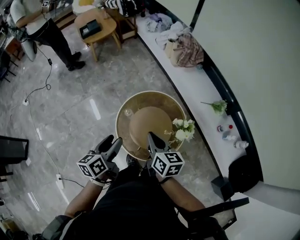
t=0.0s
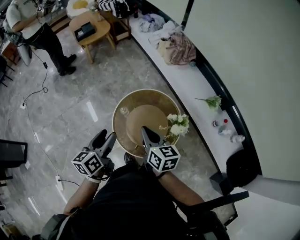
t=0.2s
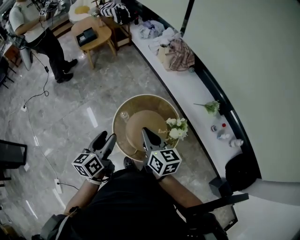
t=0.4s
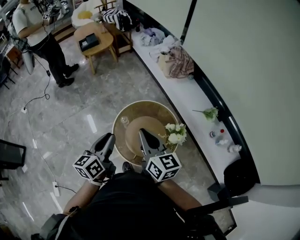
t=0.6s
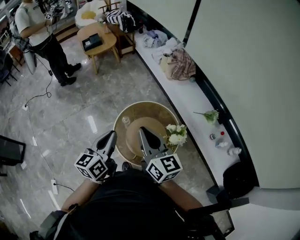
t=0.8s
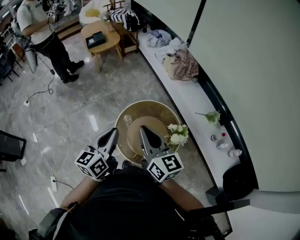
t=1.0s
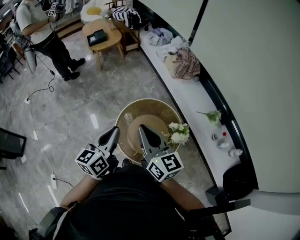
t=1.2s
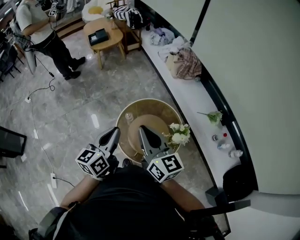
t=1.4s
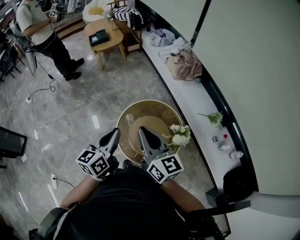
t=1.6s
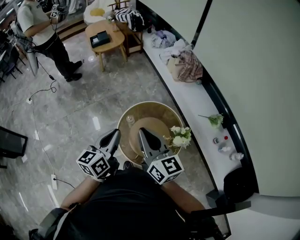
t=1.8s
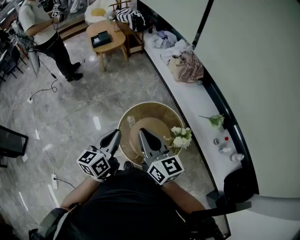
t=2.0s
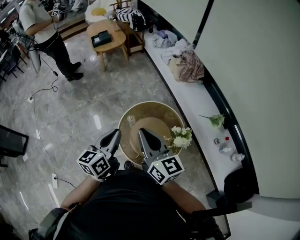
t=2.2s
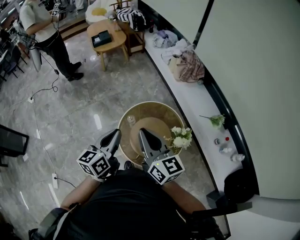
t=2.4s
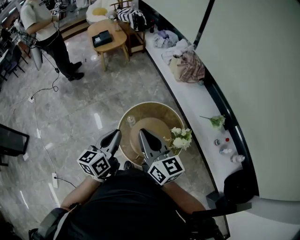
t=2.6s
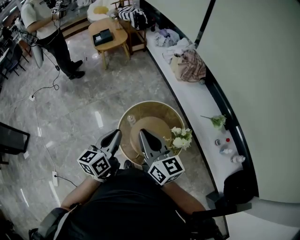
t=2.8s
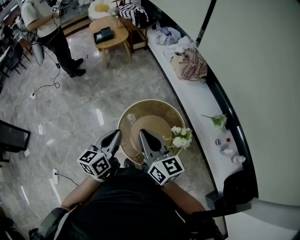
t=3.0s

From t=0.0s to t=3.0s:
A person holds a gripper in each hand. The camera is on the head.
From t=0.0s to t=1.6s: The left gripper heads upward, covering roughly 10 cm, rotates about 20 degrees, and closes up. Meanwhile the right gripper is displaced upward by roughly 15 cm, and turns by roughly 30 degrees.
From t=1.6s to t=3.0s: There are only small adjustments of the grippers.

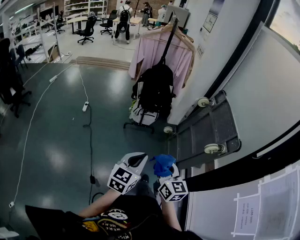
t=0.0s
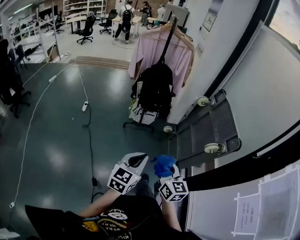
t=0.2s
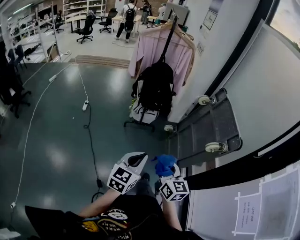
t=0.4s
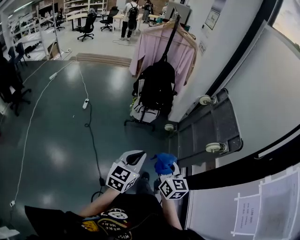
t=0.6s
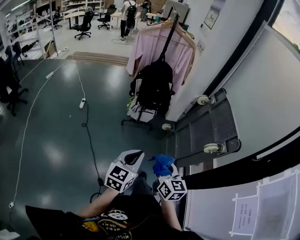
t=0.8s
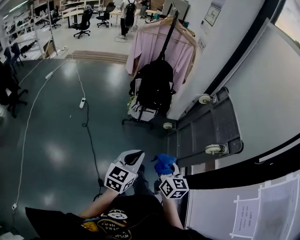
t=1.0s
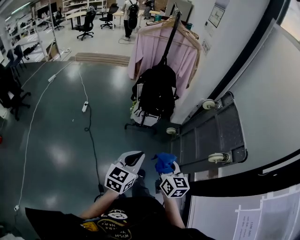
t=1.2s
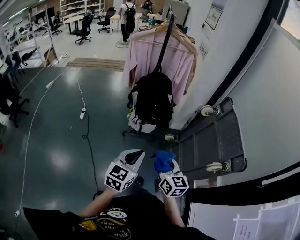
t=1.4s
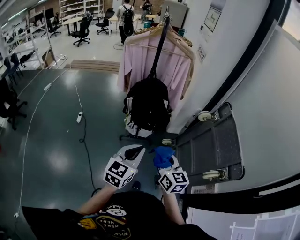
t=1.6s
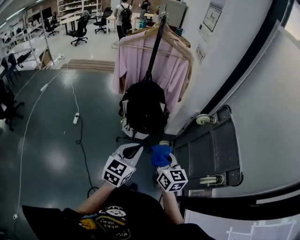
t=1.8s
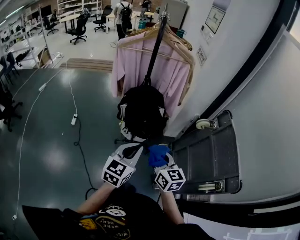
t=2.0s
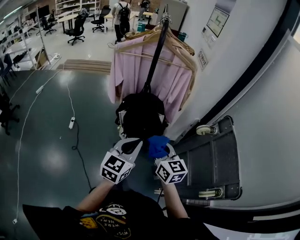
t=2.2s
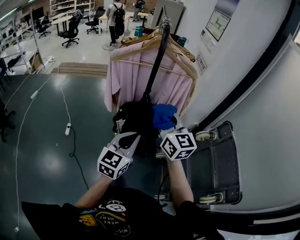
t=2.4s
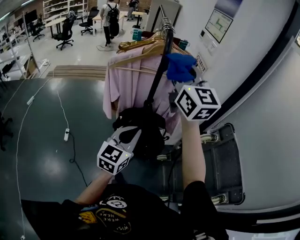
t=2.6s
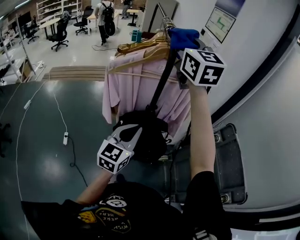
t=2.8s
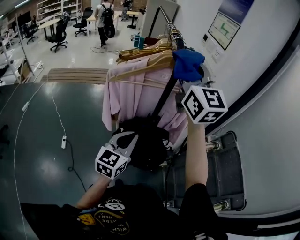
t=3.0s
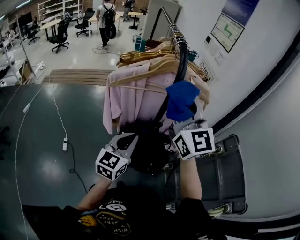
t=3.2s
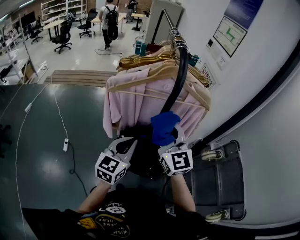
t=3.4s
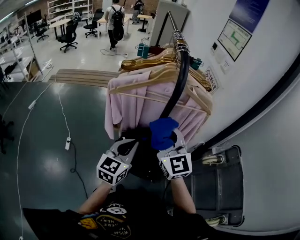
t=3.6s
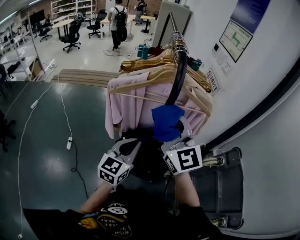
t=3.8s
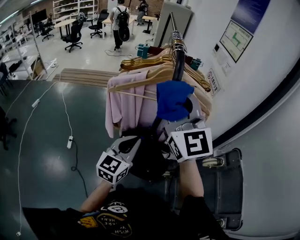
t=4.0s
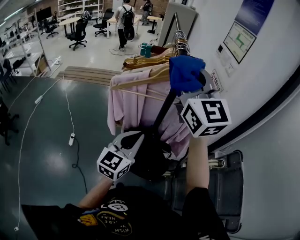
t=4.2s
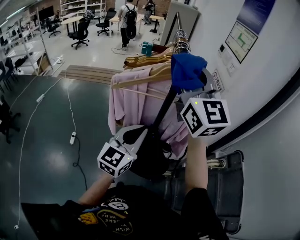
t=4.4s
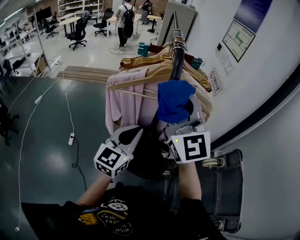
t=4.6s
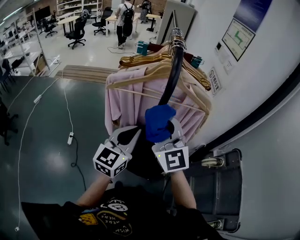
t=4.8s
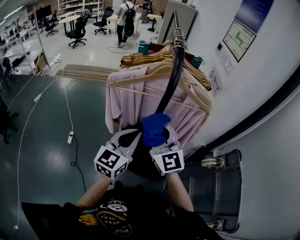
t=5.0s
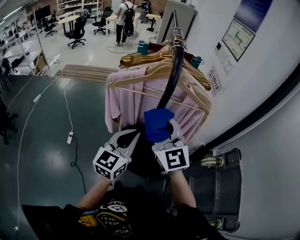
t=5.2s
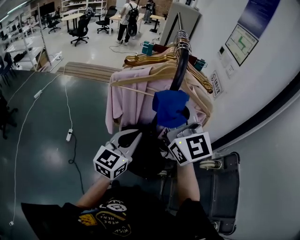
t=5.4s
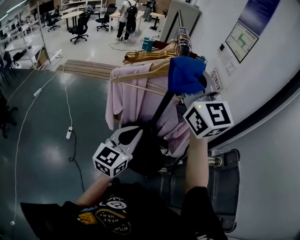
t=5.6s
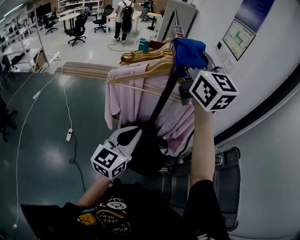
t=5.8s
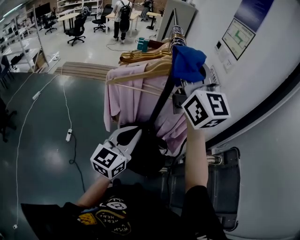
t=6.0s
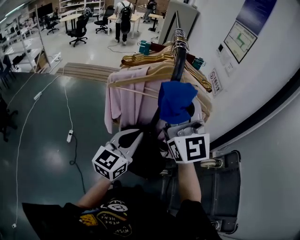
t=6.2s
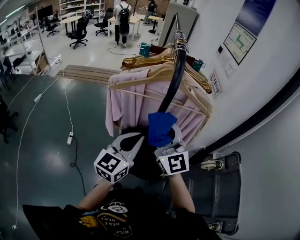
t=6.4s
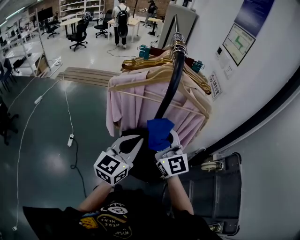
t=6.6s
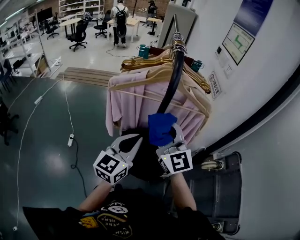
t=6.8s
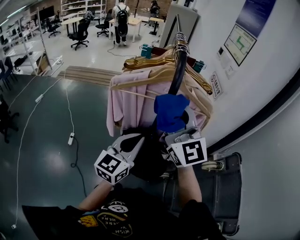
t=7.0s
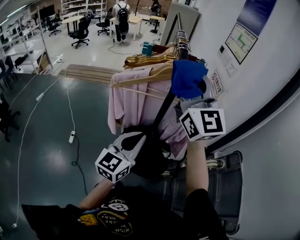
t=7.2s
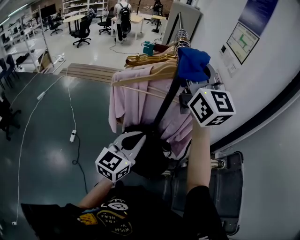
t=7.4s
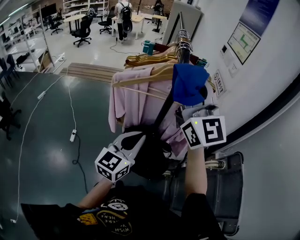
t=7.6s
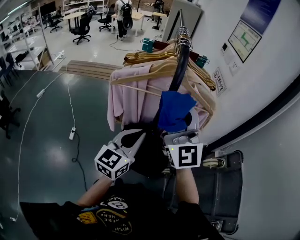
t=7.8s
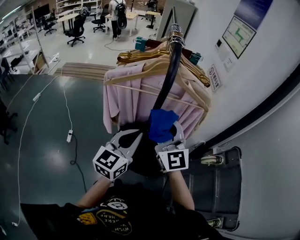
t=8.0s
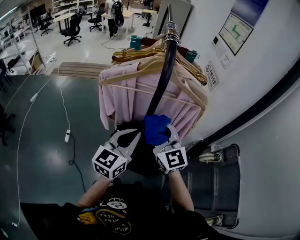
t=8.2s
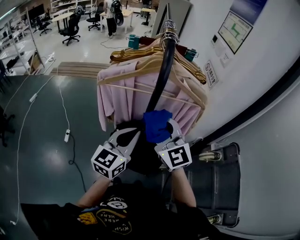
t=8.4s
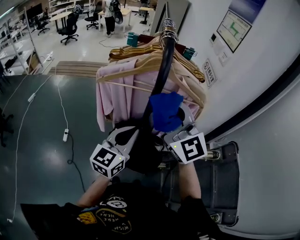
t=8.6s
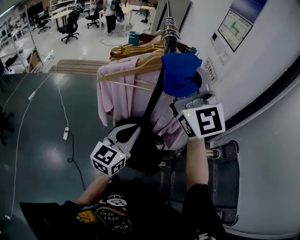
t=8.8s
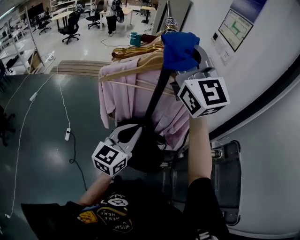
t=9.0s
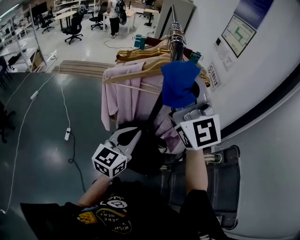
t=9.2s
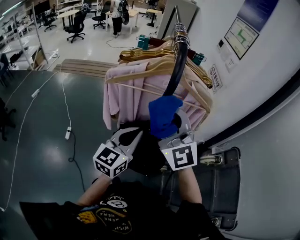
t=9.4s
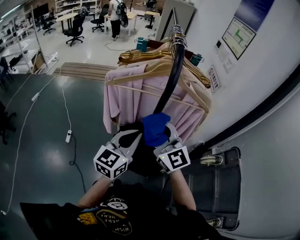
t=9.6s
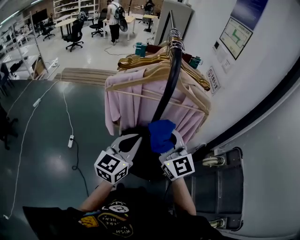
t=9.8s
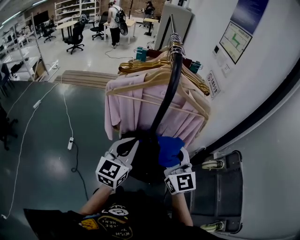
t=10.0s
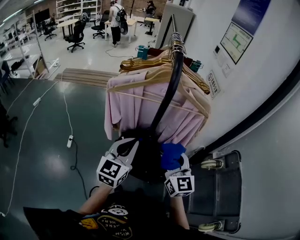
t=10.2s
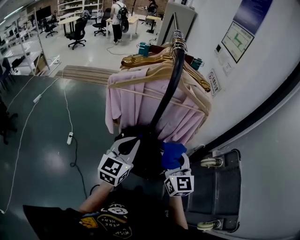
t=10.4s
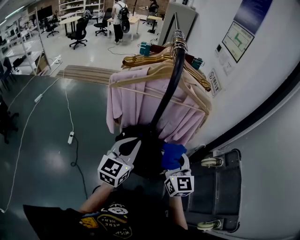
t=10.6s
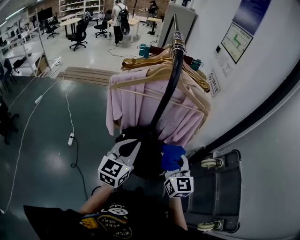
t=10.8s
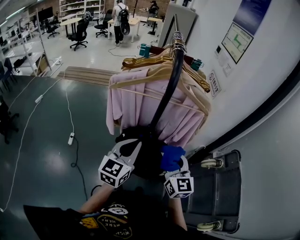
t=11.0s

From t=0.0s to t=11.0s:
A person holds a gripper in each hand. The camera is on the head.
From t=0.0s to t=1.6s: Both grippers travel together forward, some 30 cm.
From t=1.6s to t=3.2s: Both grippers are carried forward, approximately 50 cm. The right gripper is displaced upward by approximately 30 cm, and changes its angle by about 40 degrees.
From t=3.2s to t=4.8s: The right gripper swings up and down, roughly 20 cm each way, with 2 reversals. The left gripper shifts roughly 5 cm upward.
From t=4.8s to t=6.2s: The right gripper goes up and down, some 25 cm each way, reversing 2 times.
From t=6.2s to t=7.8s: The right gripper moves up and down over about 25 cm, changing direction 2 times.
From t=7.8s to t=9.4s: The right gripper swings up and down, roughly 25 cm each way, with 2 reversals.
From t=9.4s to t=11.0s: The right gripper goes roughly 20 cm downward and to the right, and swivels some 40 degrees.

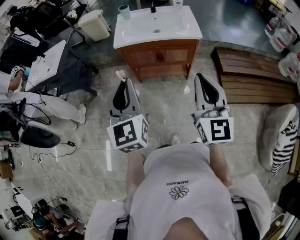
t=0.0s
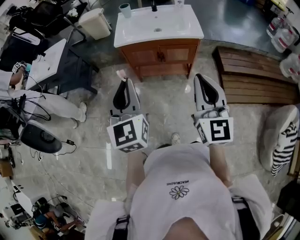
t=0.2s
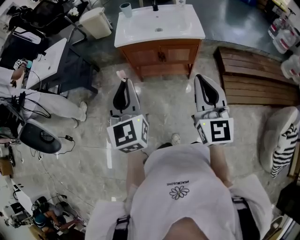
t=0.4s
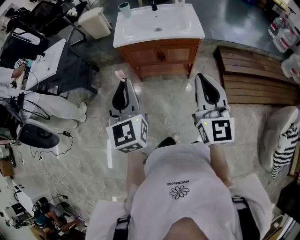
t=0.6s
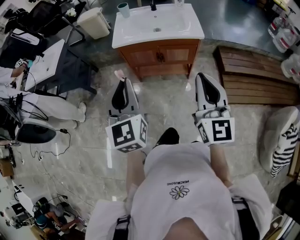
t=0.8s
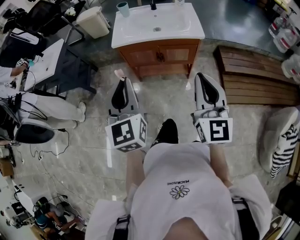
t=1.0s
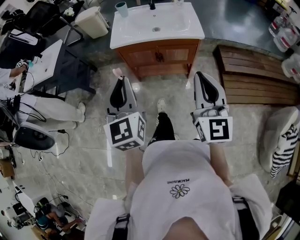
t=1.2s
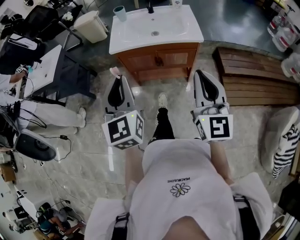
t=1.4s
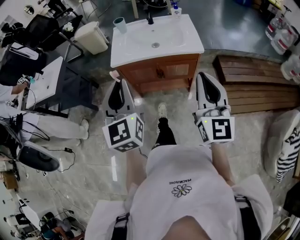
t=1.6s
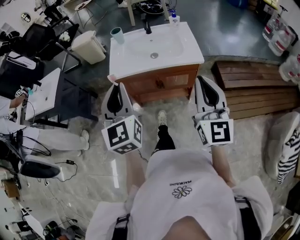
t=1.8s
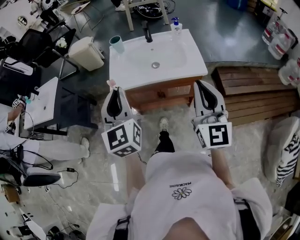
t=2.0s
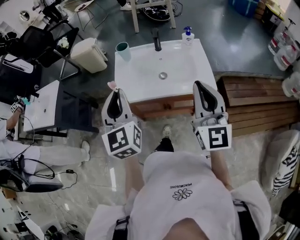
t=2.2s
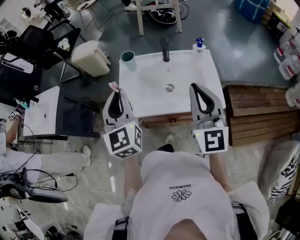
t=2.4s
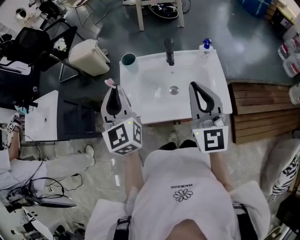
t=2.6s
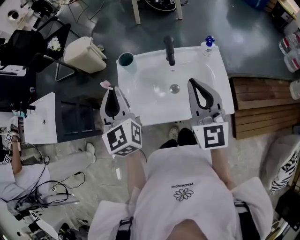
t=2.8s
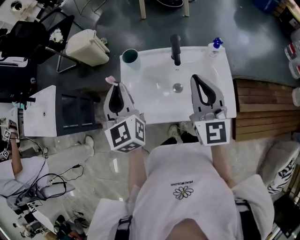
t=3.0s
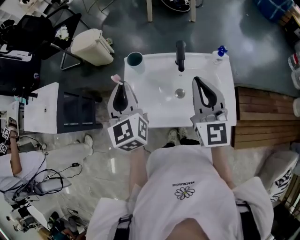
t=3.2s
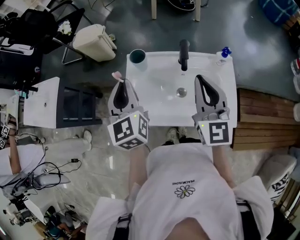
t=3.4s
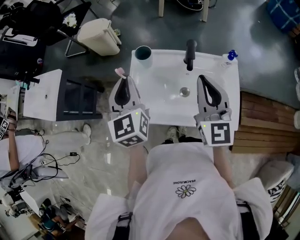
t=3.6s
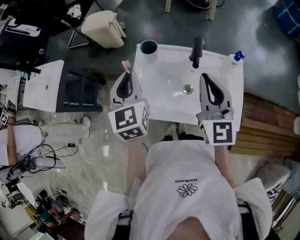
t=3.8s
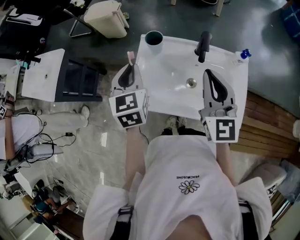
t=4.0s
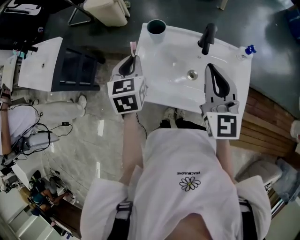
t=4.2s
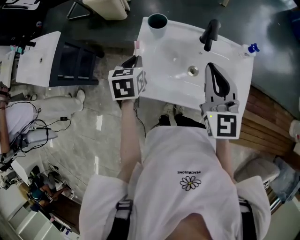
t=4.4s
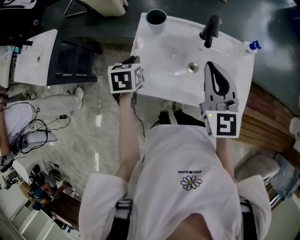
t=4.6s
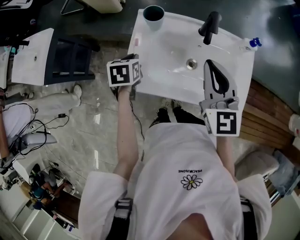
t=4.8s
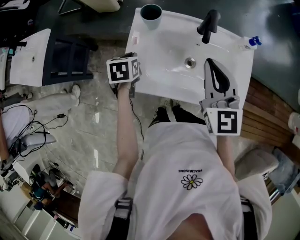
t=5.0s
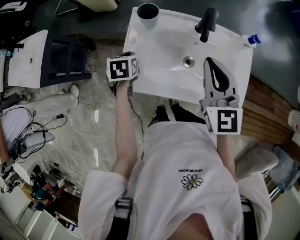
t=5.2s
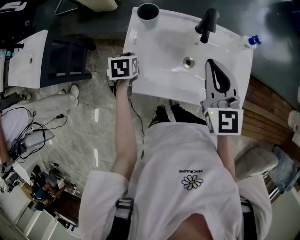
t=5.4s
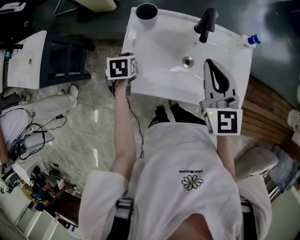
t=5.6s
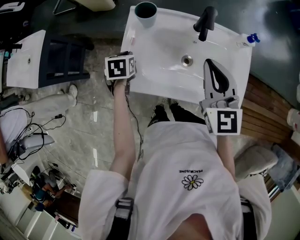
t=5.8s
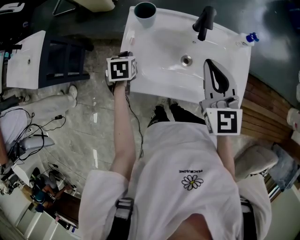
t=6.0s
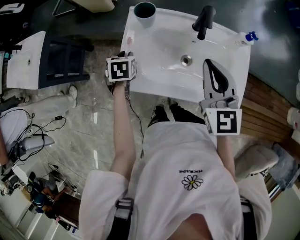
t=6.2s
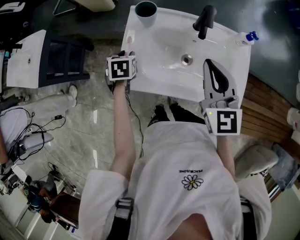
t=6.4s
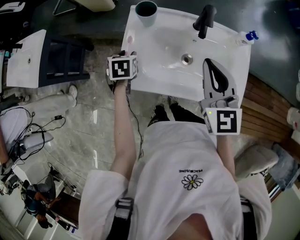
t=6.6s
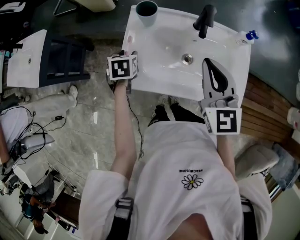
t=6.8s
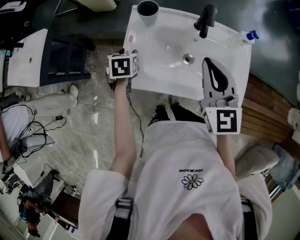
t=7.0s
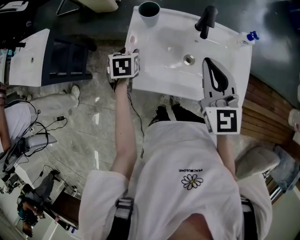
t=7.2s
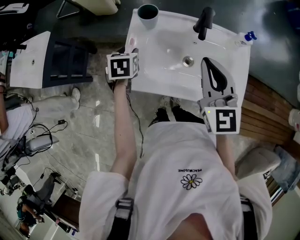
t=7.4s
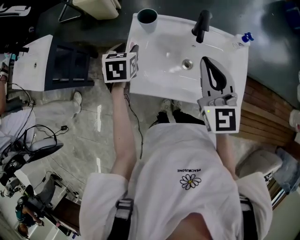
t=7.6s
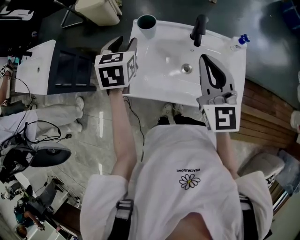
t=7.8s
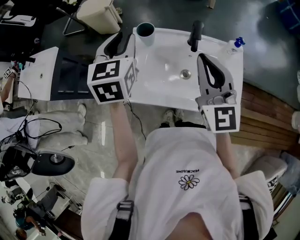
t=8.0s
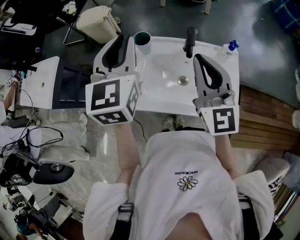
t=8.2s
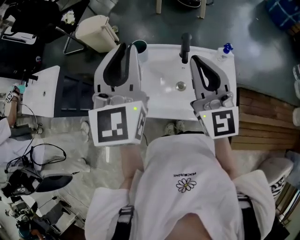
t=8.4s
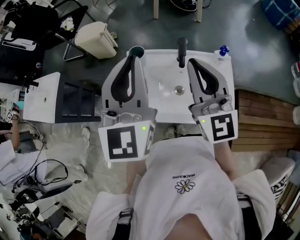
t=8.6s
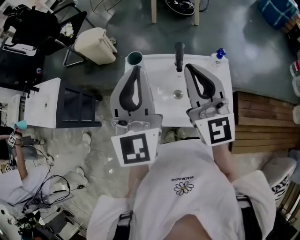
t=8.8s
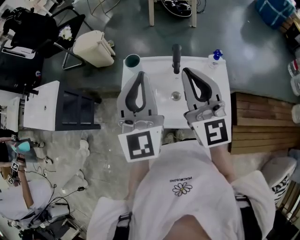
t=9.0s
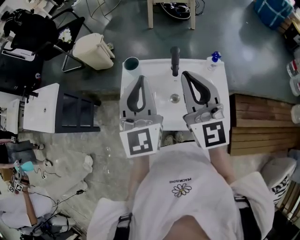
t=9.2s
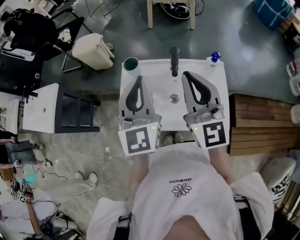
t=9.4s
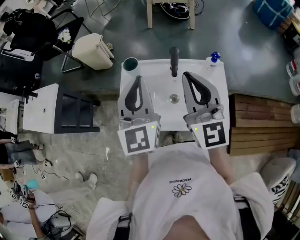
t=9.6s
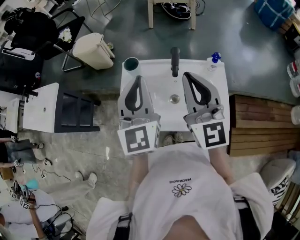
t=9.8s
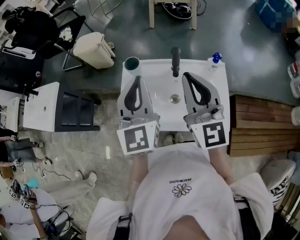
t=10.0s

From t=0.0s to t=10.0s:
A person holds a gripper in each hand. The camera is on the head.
From t=0.0s to t=1.4s: The grippers both shift forward by roughly 10 cm.
From t=1.4s to t=2.8s: Both grippers are carried forward, roughly 50 cm.
From t=2.8s to t=4.2s: The left gripper moves downward, approximately 10 cm, and changes its angle by about 30 degrees, while the right gripper goes about 5 cm forward.
From t=4.2s to t=5.8s: The left gripper heads downward, covering roughly 15 cm, and turns by roughly 30 degrees.
From t=5.8s to t=7.2s: The left gripper opens.
From t=7.2s to t=8.6s: The left gripper heads upward, covering about 40 cm, tilts its fingers approximately 60 degrees upward, and closes up. Meanwhile the right gripper heads upward, covering approximately 15 cm, and changes its angle by some 20 degrees.
From t=8.6s to t=10.0s: The left gripper is displaced downward by about 5 cm.
